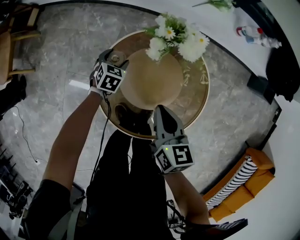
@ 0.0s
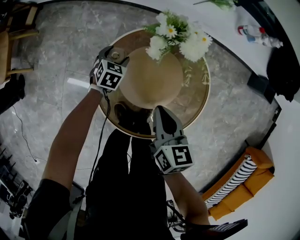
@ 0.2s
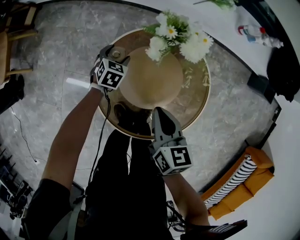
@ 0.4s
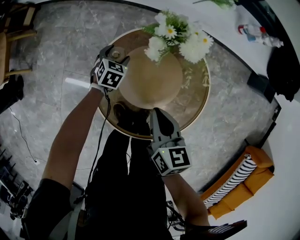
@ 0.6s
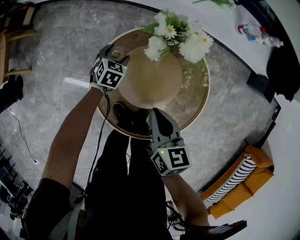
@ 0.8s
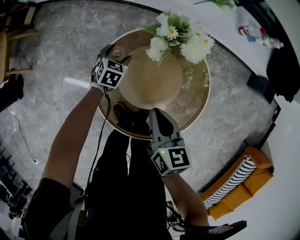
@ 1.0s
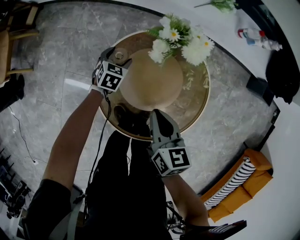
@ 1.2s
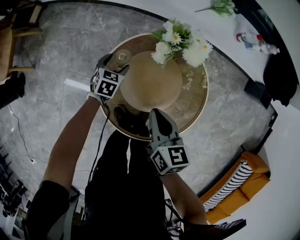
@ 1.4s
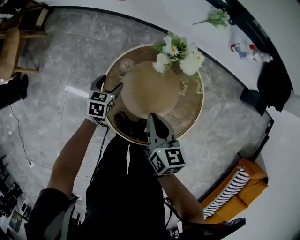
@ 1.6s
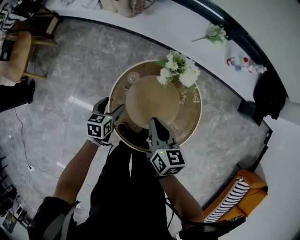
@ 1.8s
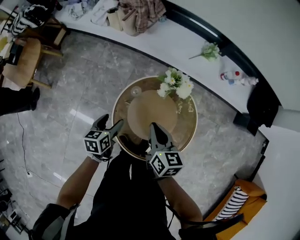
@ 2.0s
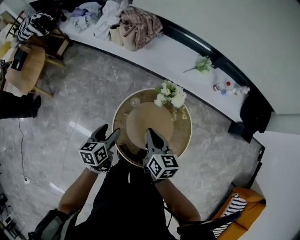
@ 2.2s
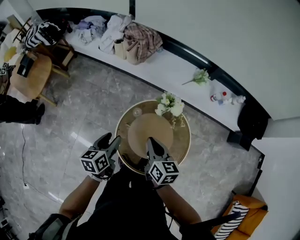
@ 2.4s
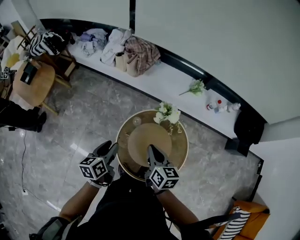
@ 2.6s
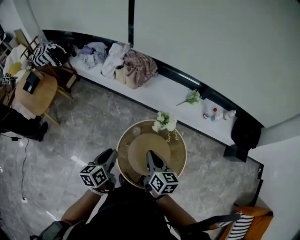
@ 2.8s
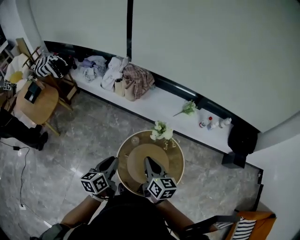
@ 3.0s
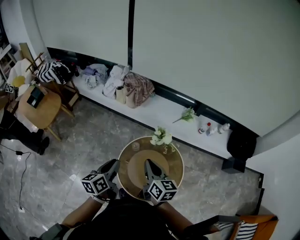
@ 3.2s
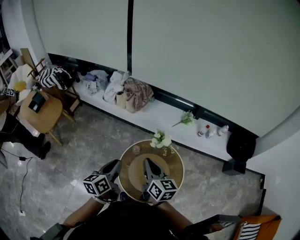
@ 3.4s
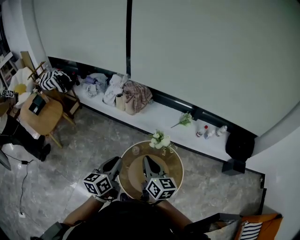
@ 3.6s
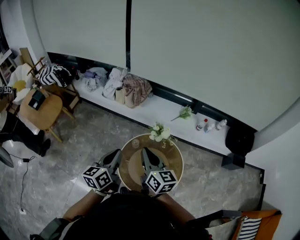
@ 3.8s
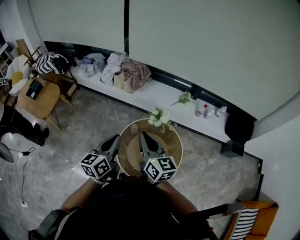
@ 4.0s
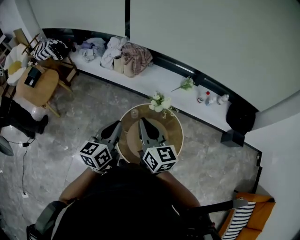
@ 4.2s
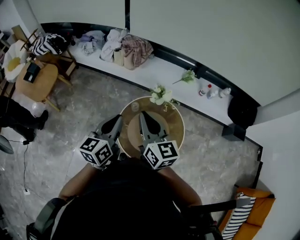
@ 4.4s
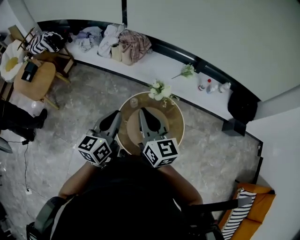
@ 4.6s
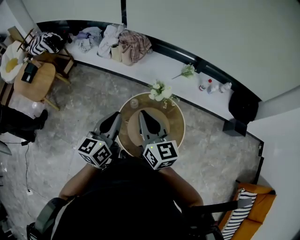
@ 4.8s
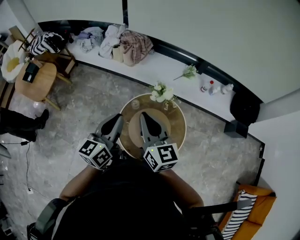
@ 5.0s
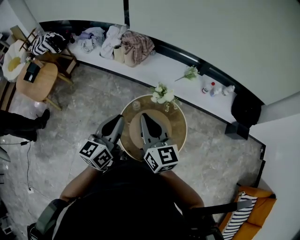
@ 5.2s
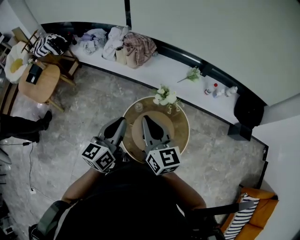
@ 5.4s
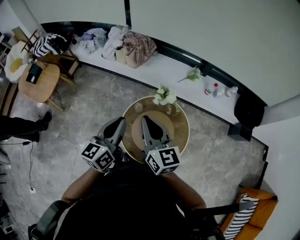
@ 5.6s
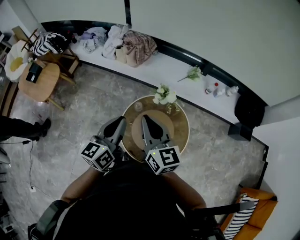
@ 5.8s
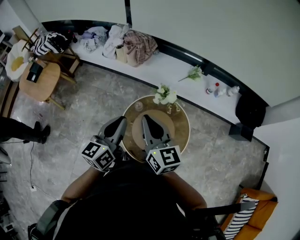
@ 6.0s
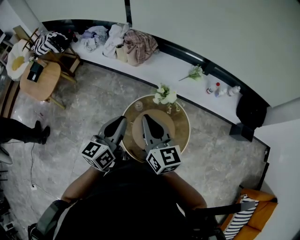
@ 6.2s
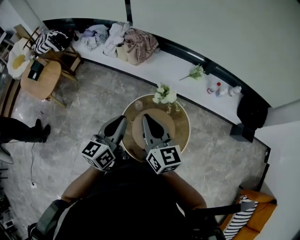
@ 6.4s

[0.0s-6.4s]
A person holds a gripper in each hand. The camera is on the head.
0.0s to 1.6s: The left gripper moves backward and upward, approximately 10 cm, and swivels approximately 20 degrees.
1.6s to 3.2s: The right gripper goes roughly 30 cm upward. The left gripper is displaced upward by about 40 cm, angles its fingers upward, by roughly 30 degrees, and closes.
3.2s to 4.8s: Both grippers travel together upward, approximately 10 cm. The left gripper rotates roughly 20 degrees.
4.8s to 6.4s: The grippers move only a little.

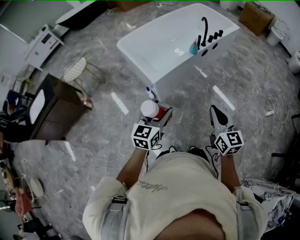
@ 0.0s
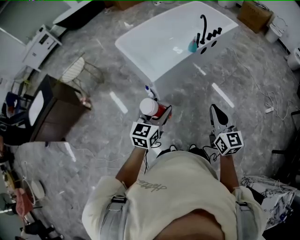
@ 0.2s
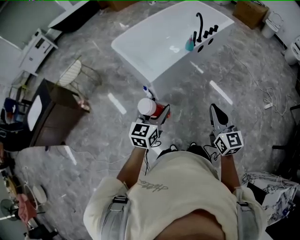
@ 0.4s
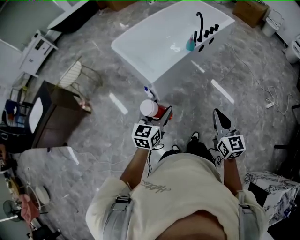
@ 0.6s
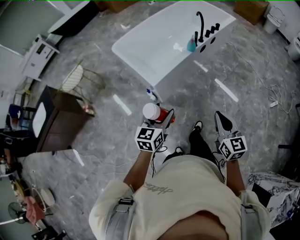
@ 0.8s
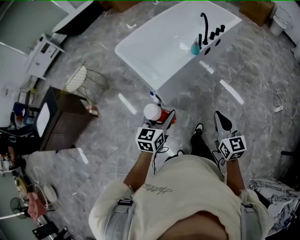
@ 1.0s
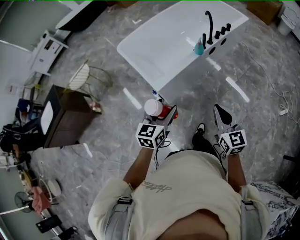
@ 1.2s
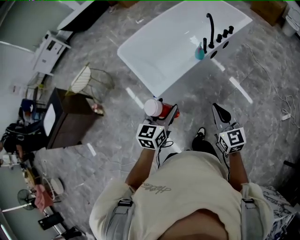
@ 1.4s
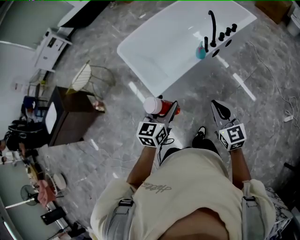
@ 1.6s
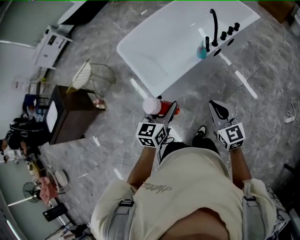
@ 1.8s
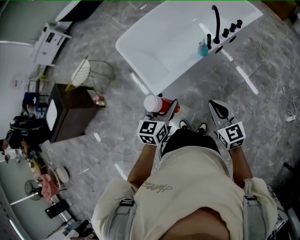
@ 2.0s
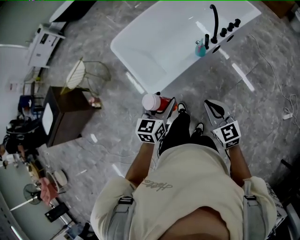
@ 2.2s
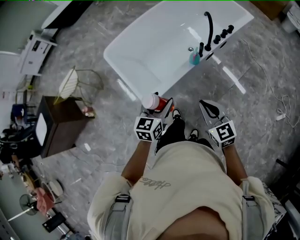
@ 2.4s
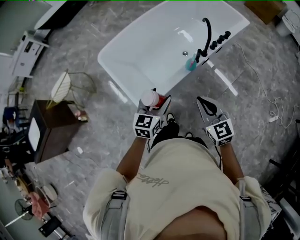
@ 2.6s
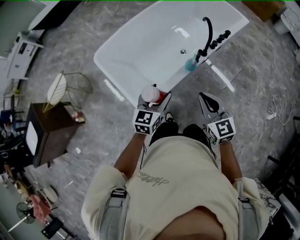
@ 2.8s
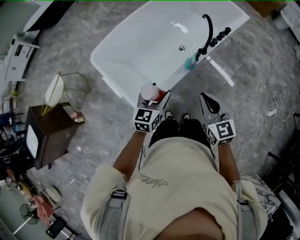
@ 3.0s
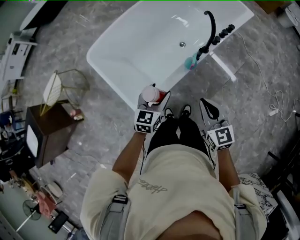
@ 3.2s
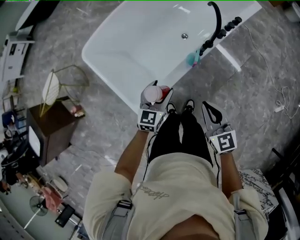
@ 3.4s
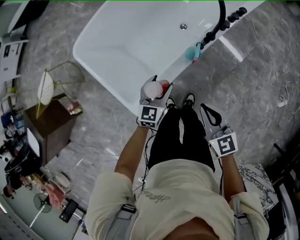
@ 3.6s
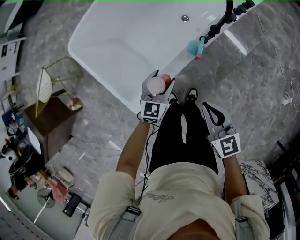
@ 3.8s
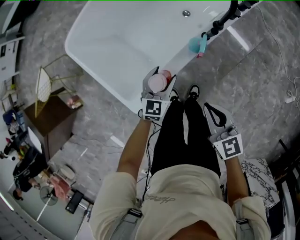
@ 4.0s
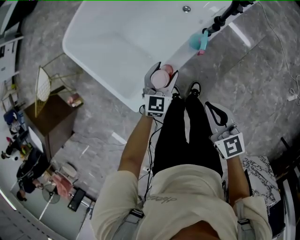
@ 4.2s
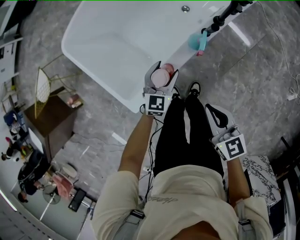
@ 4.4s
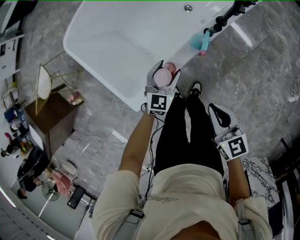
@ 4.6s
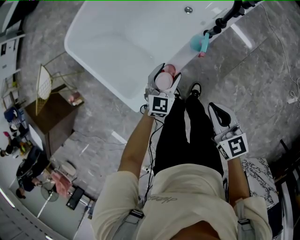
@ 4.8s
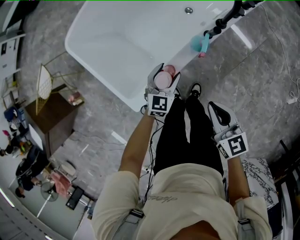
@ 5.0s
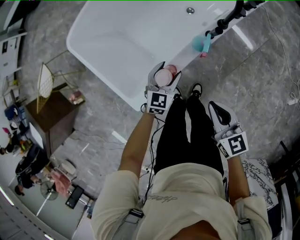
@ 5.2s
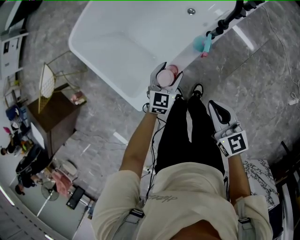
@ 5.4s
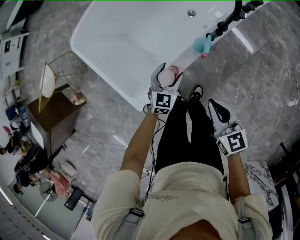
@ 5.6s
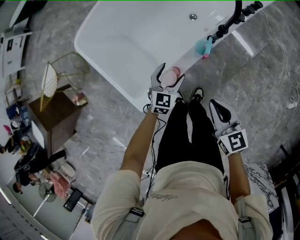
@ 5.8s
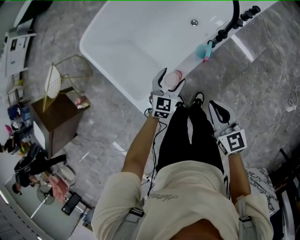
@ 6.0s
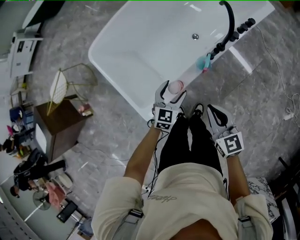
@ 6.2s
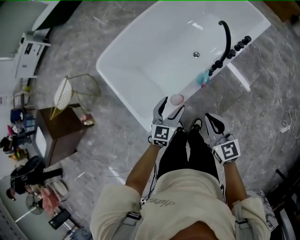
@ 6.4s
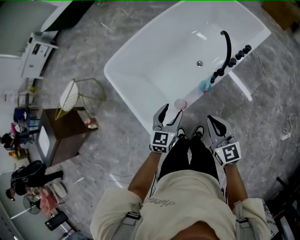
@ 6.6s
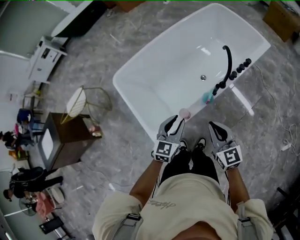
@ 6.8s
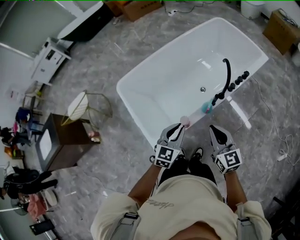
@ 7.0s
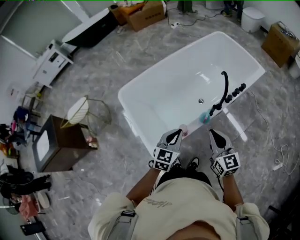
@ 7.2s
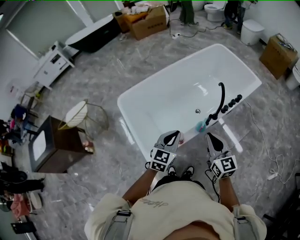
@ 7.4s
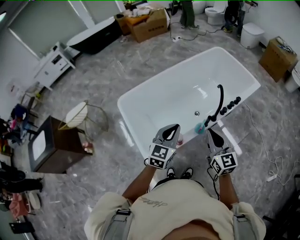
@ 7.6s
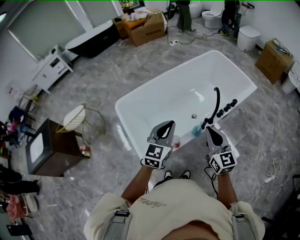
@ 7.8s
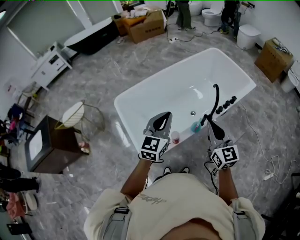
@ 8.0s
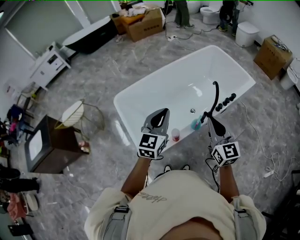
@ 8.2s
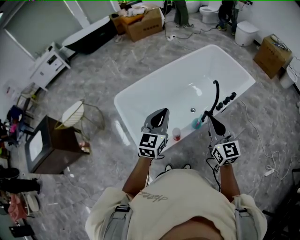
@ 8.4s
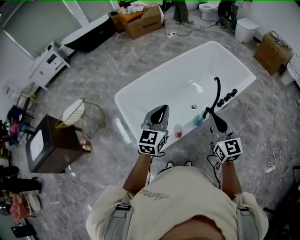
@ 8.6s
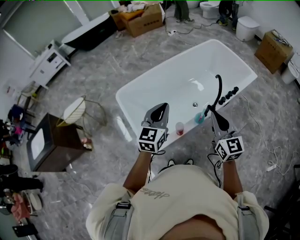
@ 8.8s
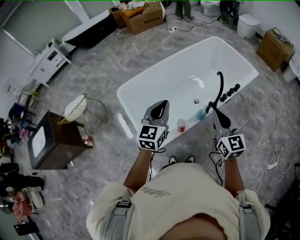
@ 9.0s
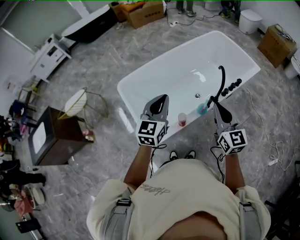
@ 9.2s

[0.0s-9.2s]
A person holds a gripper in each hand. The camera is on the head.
0.0s to 1.6s: The grippers both shift forward by approximately 25 cm.
1.6s to 3.0s: The two grippers go about 20 cm forward.
3.0s to 4.6s: Both grippers travel together downward, some 20 cm. The right gripper turns by approximately 20 degrees.
4.6s to 6.2s: Both grippers move upward, approximately 5 cm.
6.2s to 7.6s: The right gripper is displaced upward by about 15 cm. Meanwhile the left gripper travels upward by about 25 cm, and closes.
7.6s to 9.2s: The left gripper goes approximately 10 cm to the left and upward; the right gripper is displaced upward by approximately 5 cm.

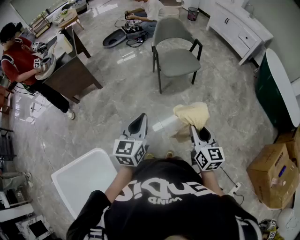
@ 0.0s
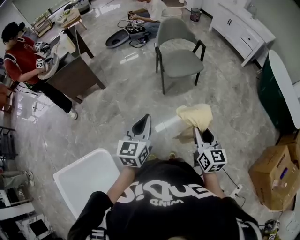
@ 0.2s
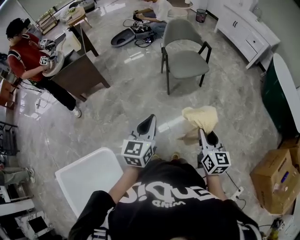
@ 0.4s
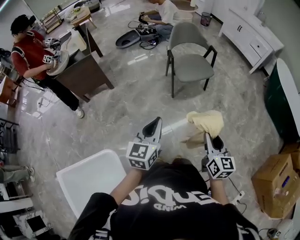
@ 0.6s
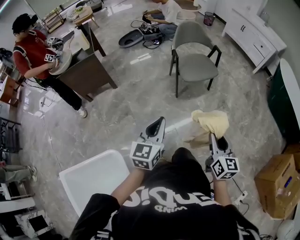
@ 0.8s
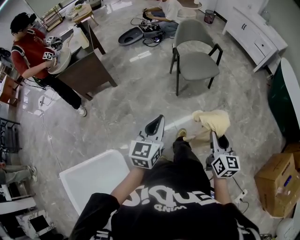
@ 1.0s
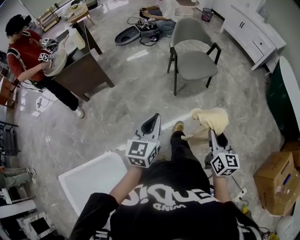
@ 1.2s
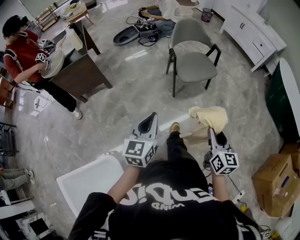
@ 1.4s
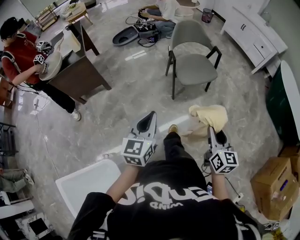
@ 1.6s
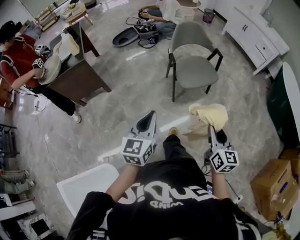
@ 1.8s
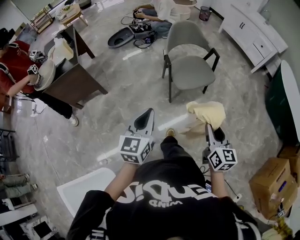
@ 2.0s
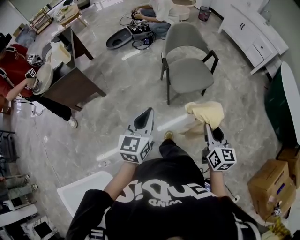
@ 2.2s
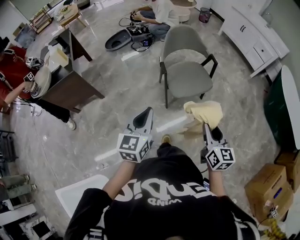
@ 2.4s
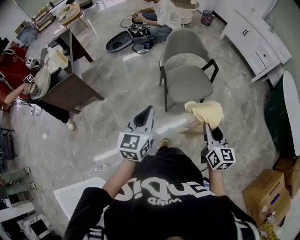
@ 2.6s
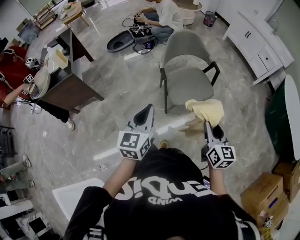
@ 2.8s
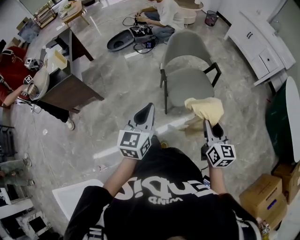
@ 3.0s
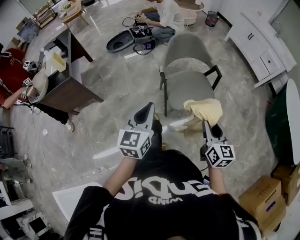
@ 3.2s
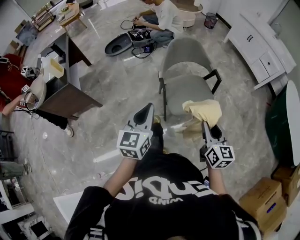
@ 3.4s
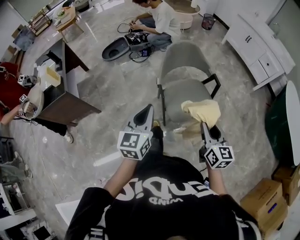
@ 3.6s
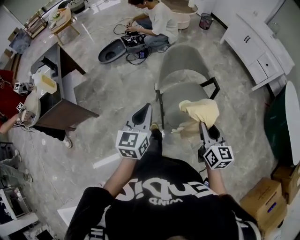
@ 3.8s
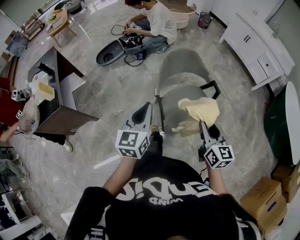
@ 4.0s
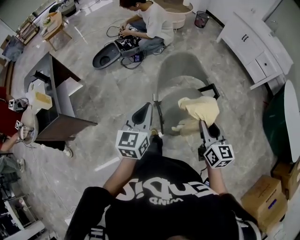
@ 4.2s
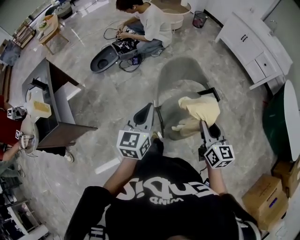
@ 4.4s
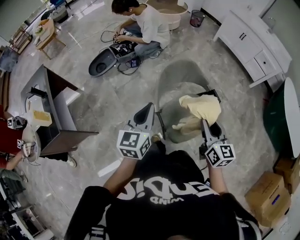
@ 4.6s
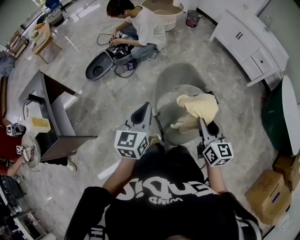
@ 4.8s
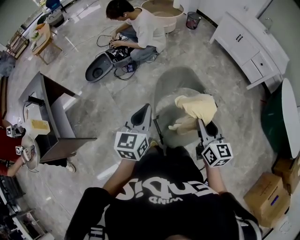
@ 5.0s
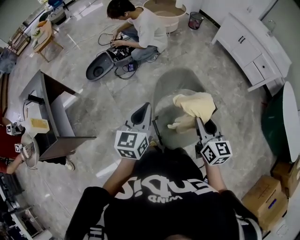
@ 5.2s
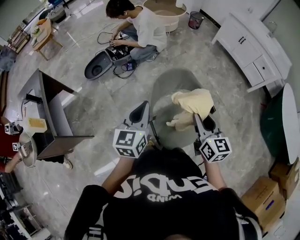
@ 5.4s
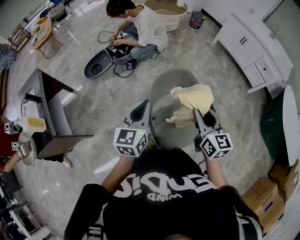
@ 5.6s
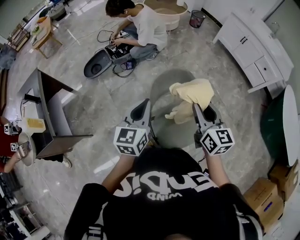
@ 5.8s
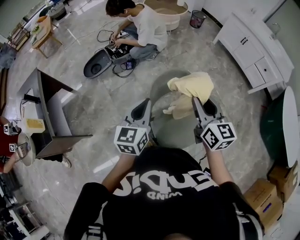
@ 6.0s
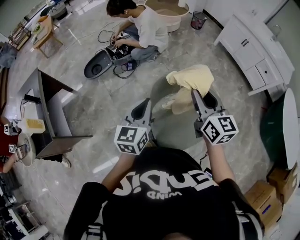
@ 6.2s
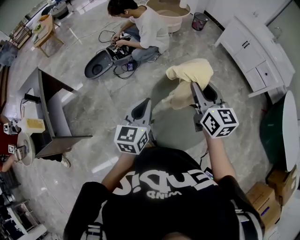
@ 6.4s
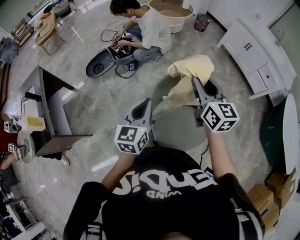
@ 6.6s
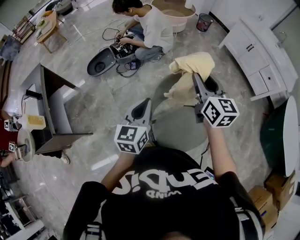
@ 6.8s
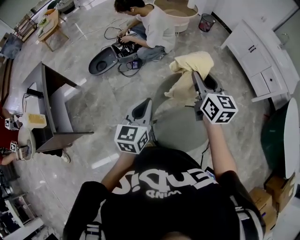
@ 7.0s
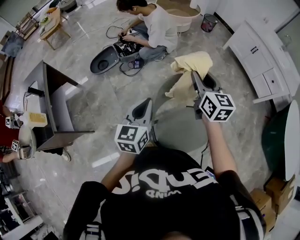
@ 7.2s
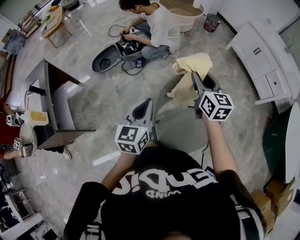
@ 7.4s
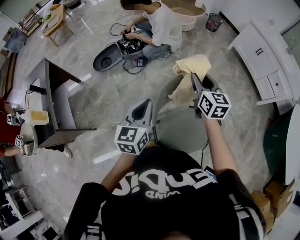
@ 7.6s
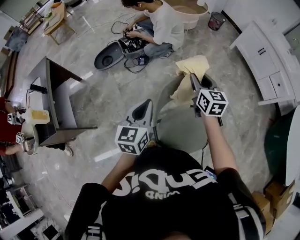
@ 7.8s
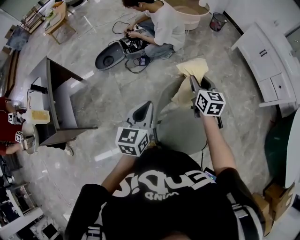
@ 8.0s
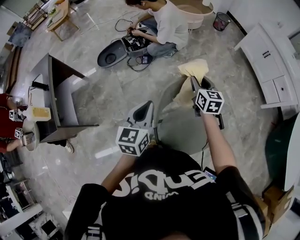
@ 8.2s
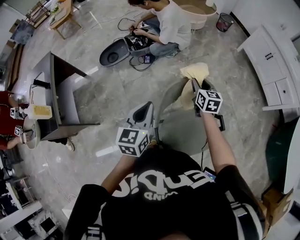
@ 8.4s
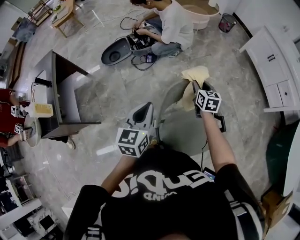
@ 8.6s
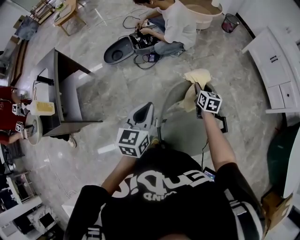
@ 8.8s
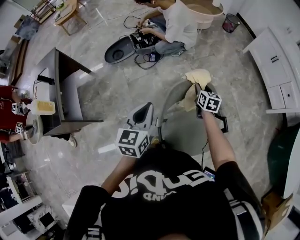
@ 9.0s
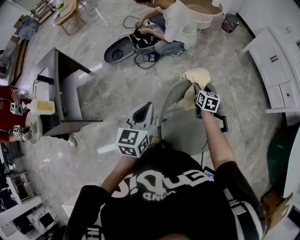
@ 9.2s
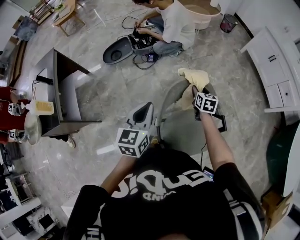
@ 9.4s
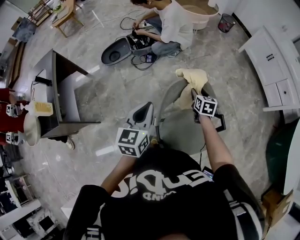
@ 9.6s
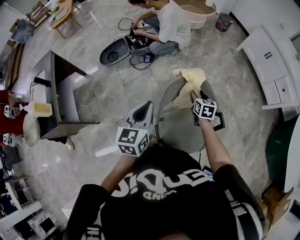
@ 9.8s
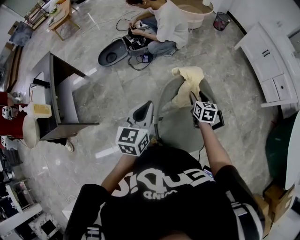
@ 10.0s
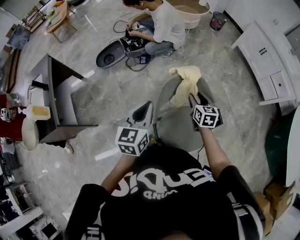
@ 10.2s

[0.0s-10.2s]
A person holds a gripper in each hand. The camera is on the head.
0.0s to 1.4s: The left gripper is displaced to the left and forward by approximately 10 cm. Meanwhile the right gripper goes some 5 cm forward.
1.4s to 3.0s: The grippers both shift forward by approximately 30 cm.
3.0s to 4.4s: The grippers both shift forward by some 30 cm.
4.4s to 5.8s: Both grippers travel together forward, approximately 15 cm.
5.8s to 7.2s: The right gripper shifts approximately 15 cm forward.
7.2s to 8.8s: The right gripper is displaced downward by about 25 cm, and changes its angle by about 20 degrees.
8.8s to 10.2s: The right gripper shifts roughly 10 cm backward.
